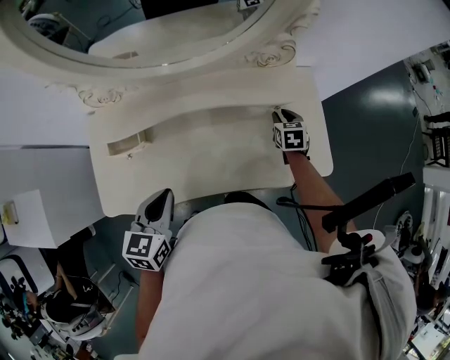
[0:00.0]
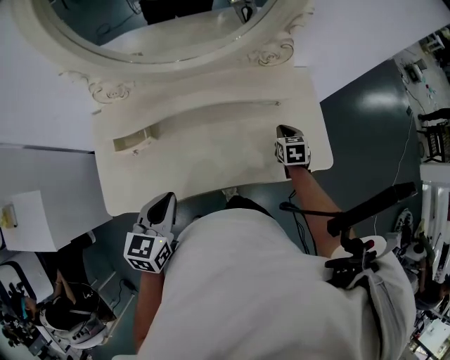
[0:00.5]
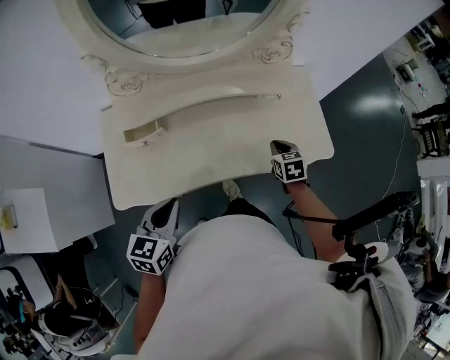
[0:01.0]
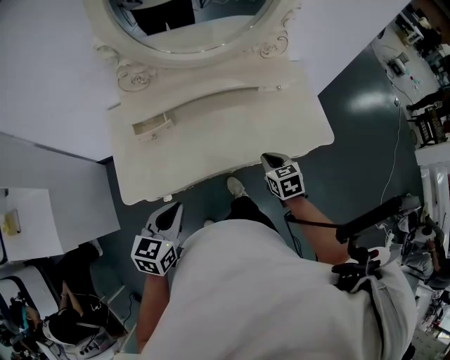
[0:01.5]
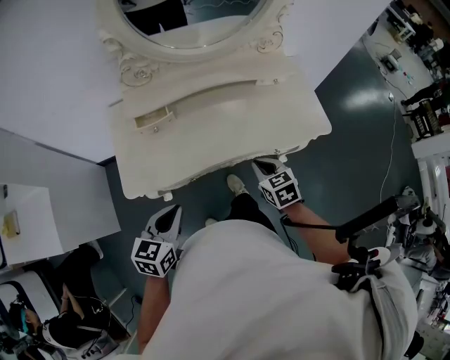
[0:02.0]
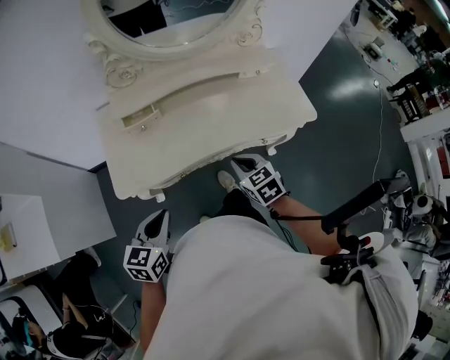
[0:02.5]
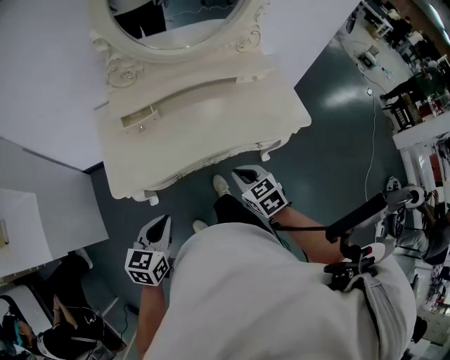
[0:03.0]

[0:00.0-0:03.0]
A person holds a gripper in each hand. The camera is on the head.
0:00.0 to 0:01.5: The left gripper is displaced backward by about 20 cm. The right gripper travels backward by about 30 cm, and closes up.
0:01.5 to 0:03.0: The left gripper is displaced backward by roughly 10 cm. The right gripper goes roughly 15 cm backward and to the left.

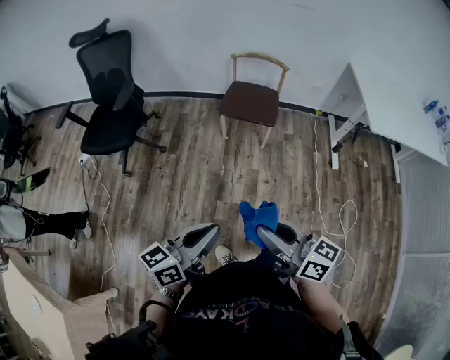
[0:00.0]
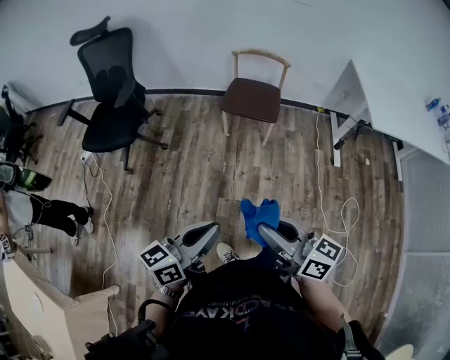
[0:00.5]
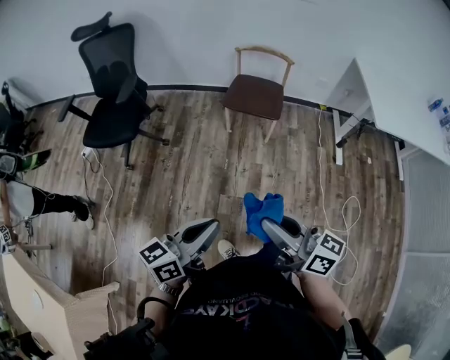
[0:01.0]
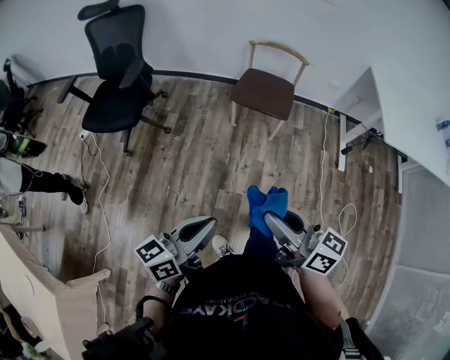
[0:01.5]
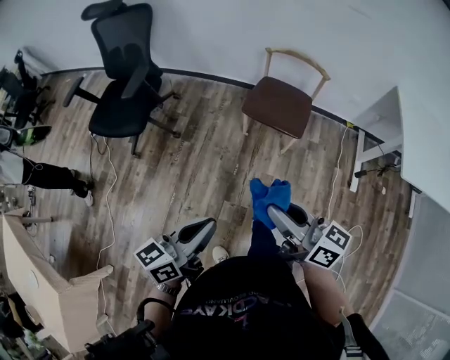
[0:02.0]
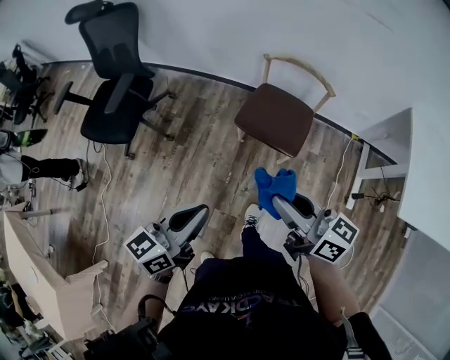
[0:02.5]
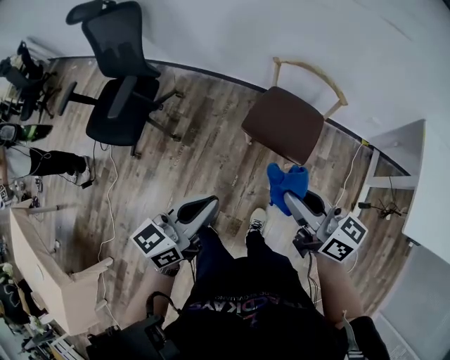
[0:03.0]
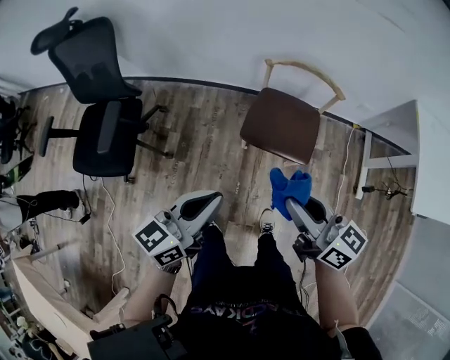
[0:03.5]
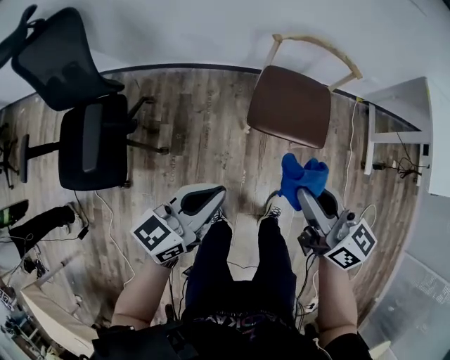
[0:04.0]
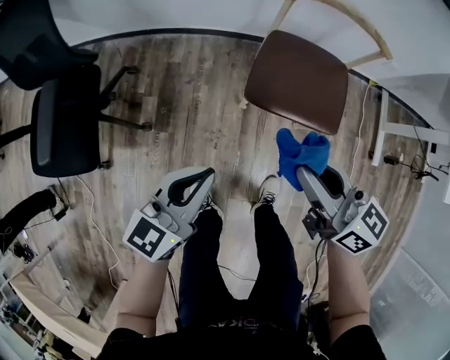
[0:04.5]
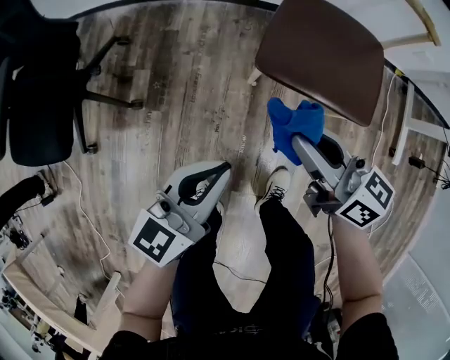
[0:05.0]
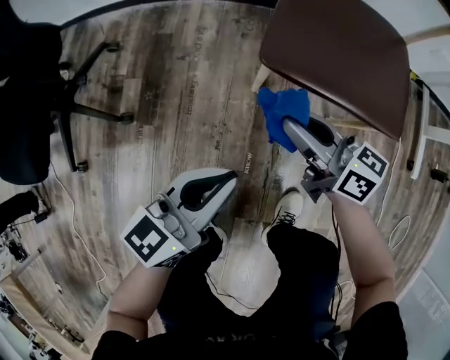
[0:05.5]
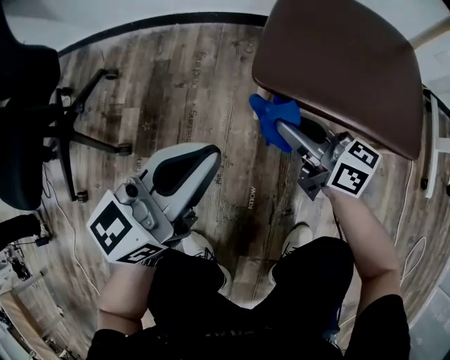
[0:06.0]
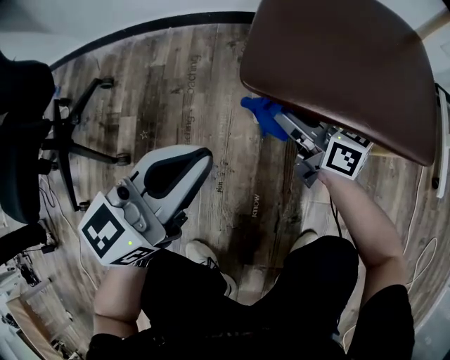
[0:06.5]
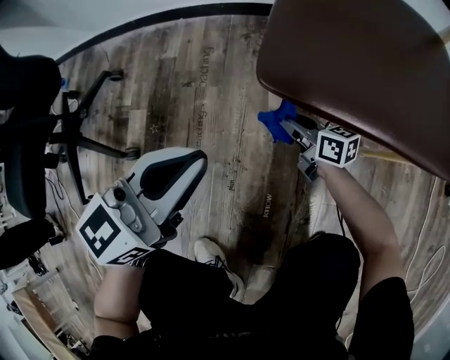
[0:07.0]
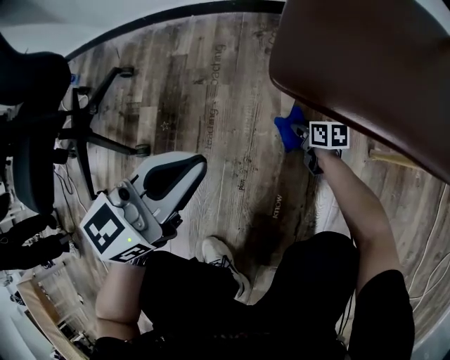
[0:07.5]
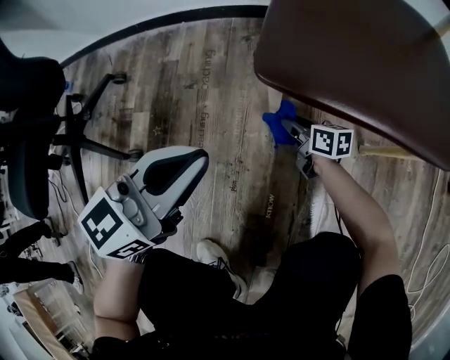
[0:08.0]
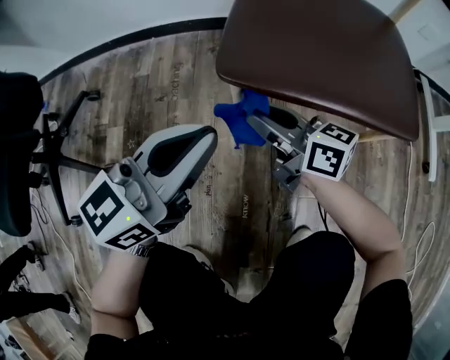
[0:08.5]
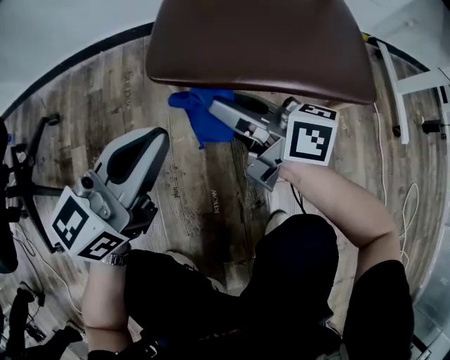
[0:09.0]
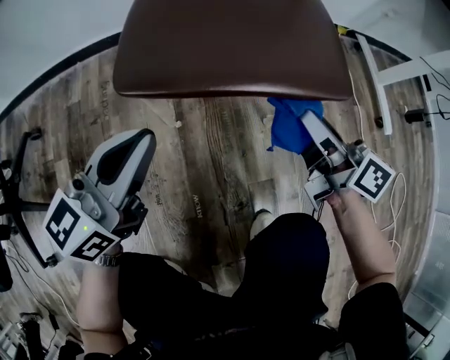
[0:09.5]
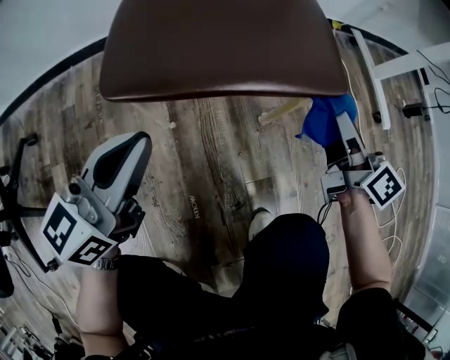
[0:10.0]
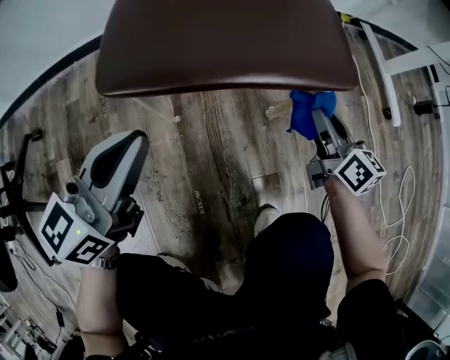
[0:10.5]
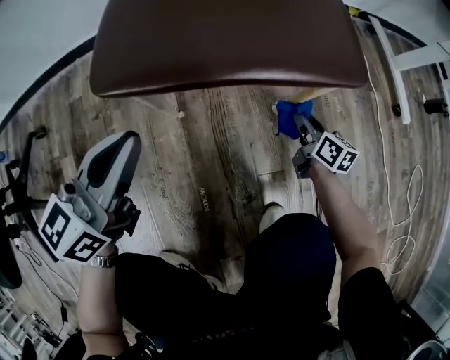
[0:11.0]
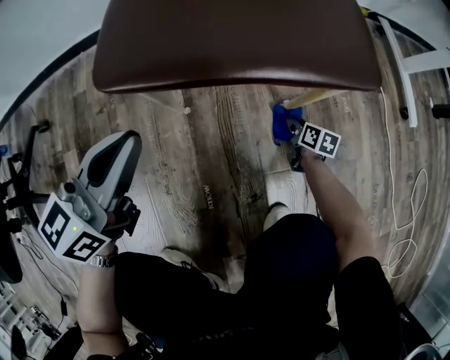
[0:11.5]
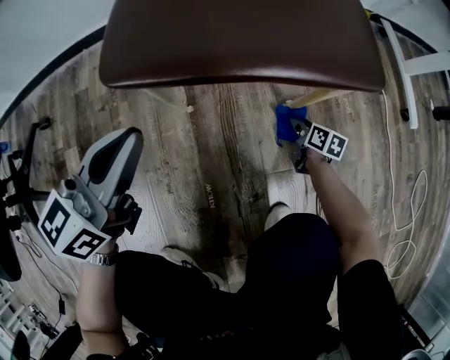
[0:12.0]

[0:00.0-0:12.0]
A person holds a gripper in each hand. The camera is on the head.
0:00.0 to 0:02.0: The grippers both shift forward by approximately 20 cm.
0:02.0 to 0:04.0: The grippers both shift forward by roughly 40 cm. The right gripper swivels approximately 20 degrees. The left gripper rotates about 20 degrees.
0:04.0 to 0:06.0: The grippers both shift downward by roughly 50 cm.
0:06.0 to 0:08.0: The right gripper goes approximately 25 cm downward, and rotates about 30 degrees. The left gripper goes about 5 cm downward.
0:08.0 to 0:10.0: The left gripper ends up approximately 10 cm from where it was. The right gripper shifts by some 50 cm, and turns by about 50 degrees.
0:10.0 to 0:12.0: The right gripper shifts some 35 cm downward, and points its fingers roughly 40 degrees further downward.

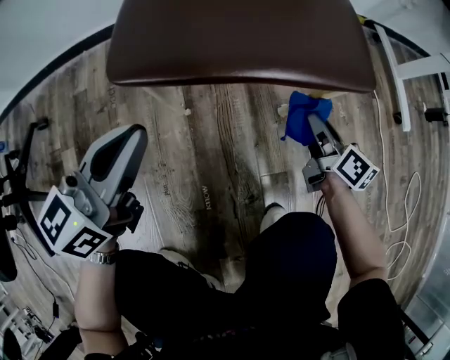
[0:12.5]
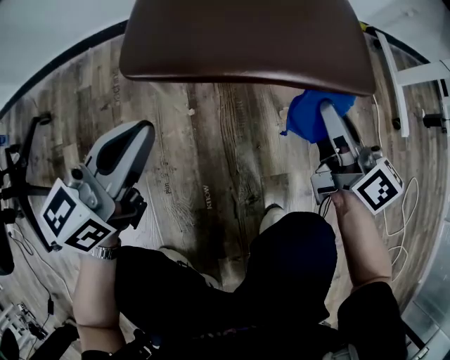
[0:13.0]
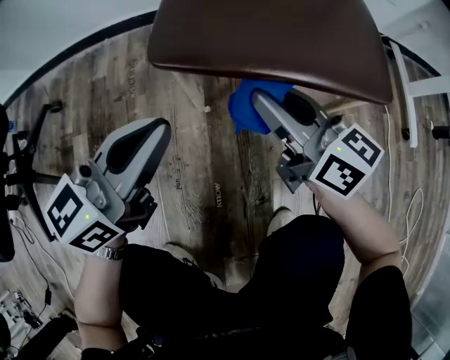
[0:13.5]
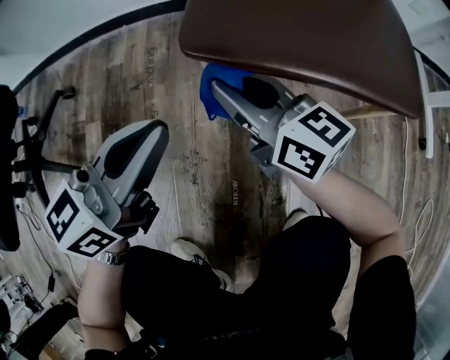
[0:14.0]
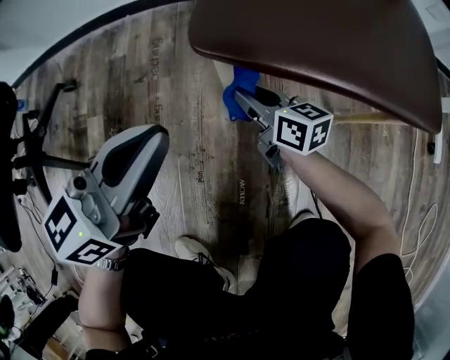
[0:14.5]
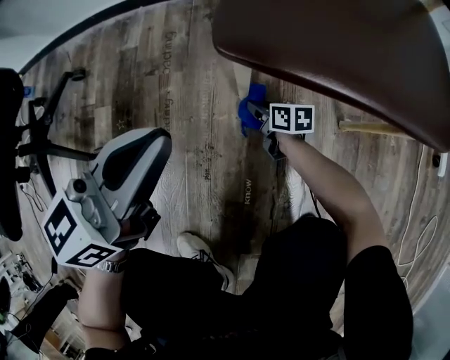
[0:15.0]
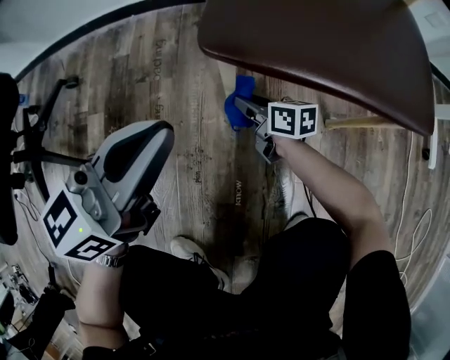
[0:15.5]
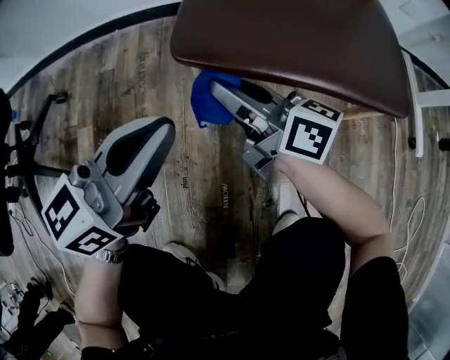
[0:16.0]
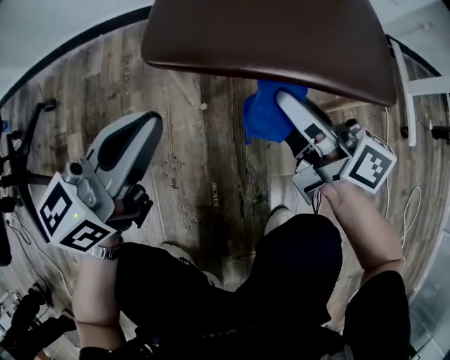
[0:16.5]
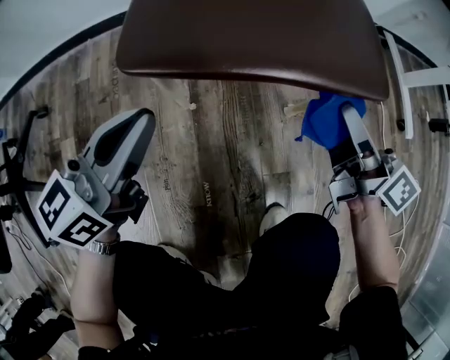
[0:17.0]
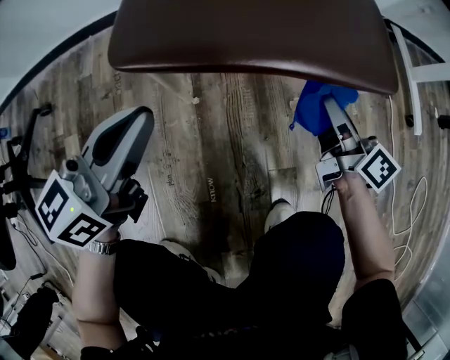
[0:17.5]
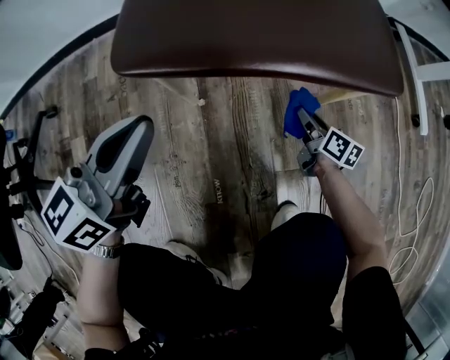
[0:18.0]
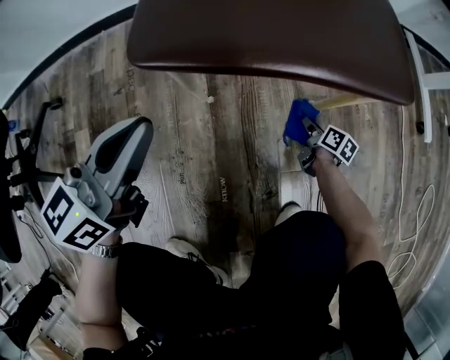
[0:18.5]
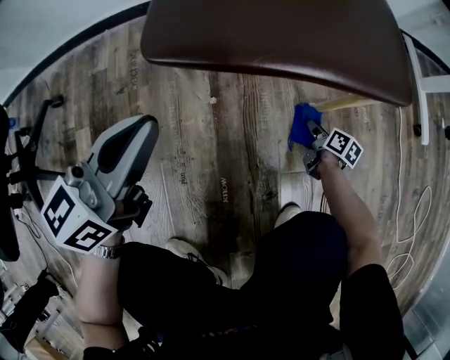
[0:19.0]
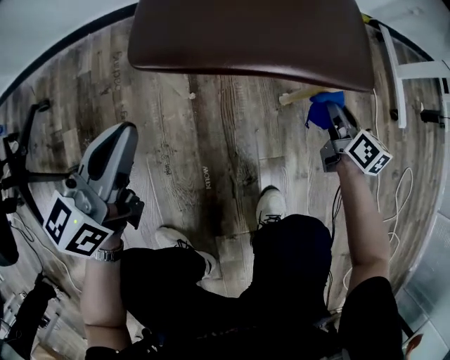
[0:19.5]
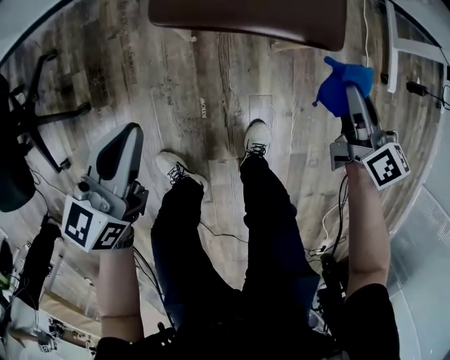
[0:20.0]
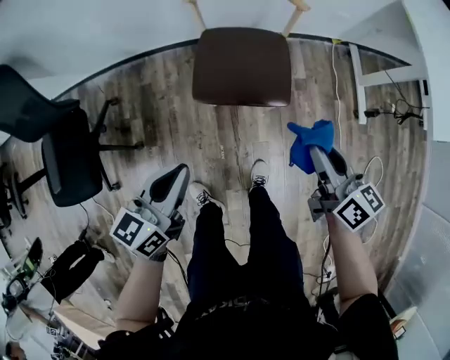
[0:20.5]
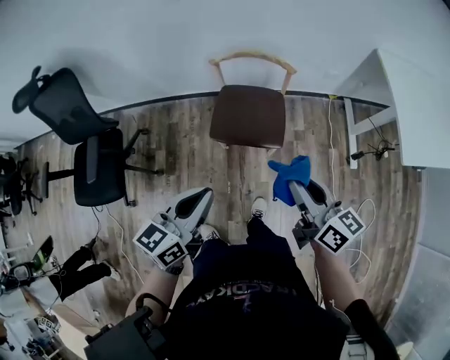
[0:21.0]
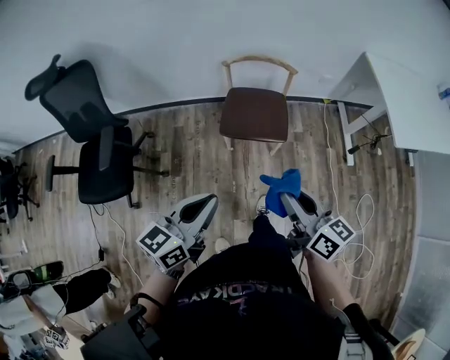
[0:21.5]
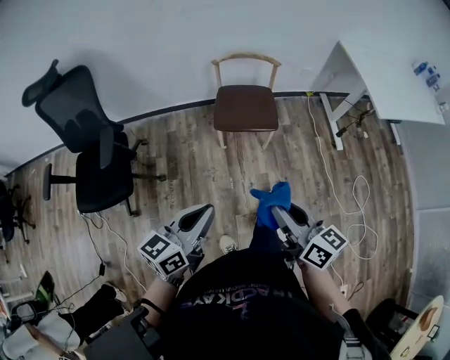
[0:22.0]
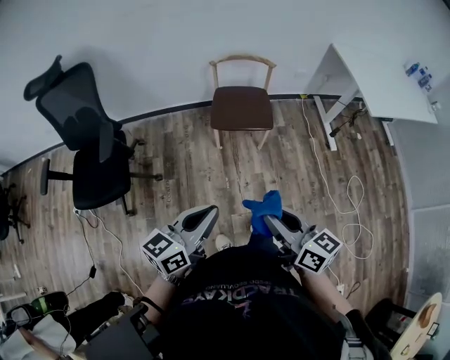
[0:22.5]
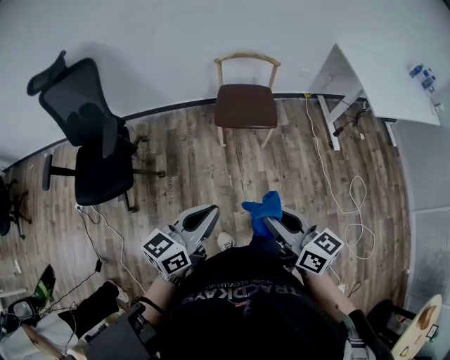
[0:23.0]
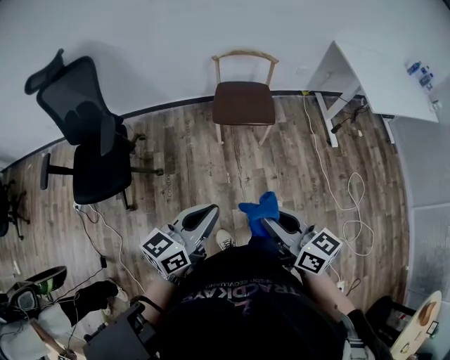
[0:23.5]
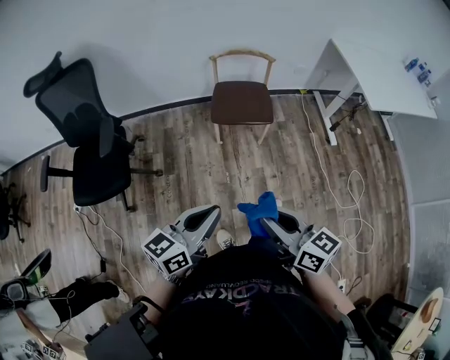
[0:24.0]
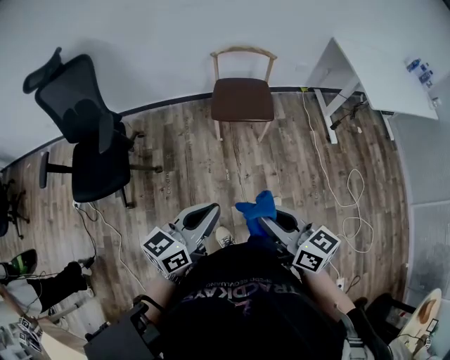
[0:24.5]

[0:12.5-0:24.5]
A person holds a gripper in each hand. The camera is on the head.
0:12.5 to 0:14.5: The left gripper moves to the left, about 5 cm. The right gripper is displaced to the left by some 35 cm, and turns by roughly 40 degrees.
0:14.5 to 0:16.5: The right gripper is displaced upward and to the right by roughly 25 cm, and turns by approximately 20 degrees. The left gripper changes place by roughly 5 cm.
0:16.5 to 0:18.5: The right gripper moves downward and to the right, some 40 cm, and tilts its fingers roughly 40 degrees downward.
0:18.5 to 0:20.5: The right gripper shifts about 80 cm upward, and changes its angle by some 40 degrees. Meanwhile the left gripper moves upward, some 50 cm.
0:20.5 to 0:22.5: Both grippers travel together backward and upward, approximately 40 cm.
0:22.5 to 0:24.5: The grippers move only a little.
